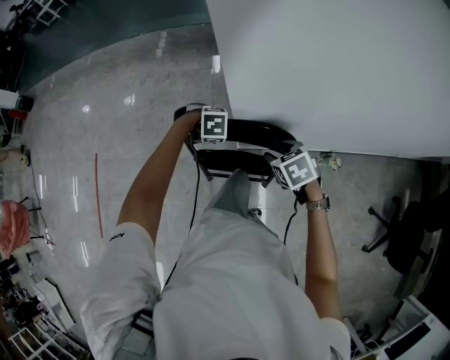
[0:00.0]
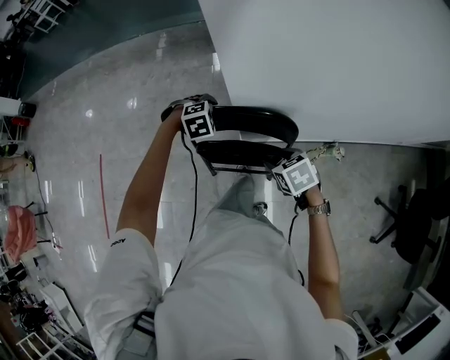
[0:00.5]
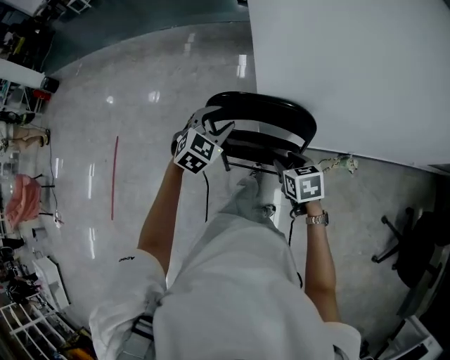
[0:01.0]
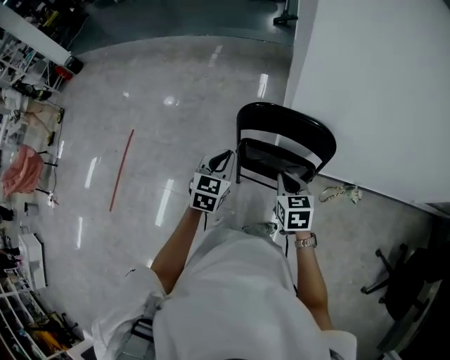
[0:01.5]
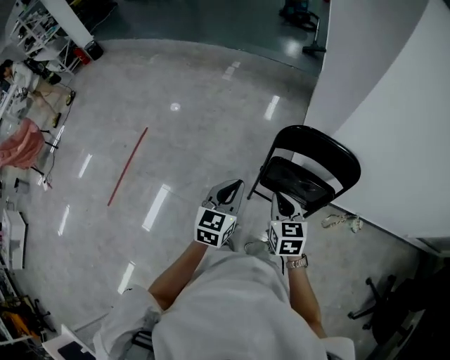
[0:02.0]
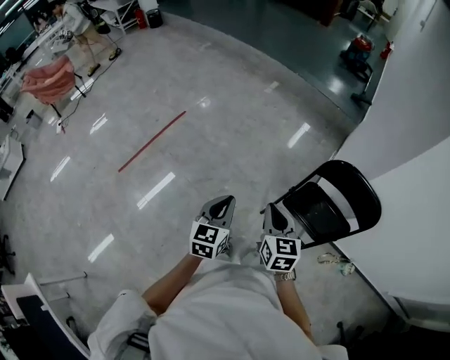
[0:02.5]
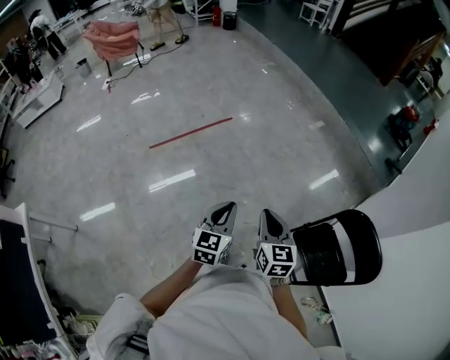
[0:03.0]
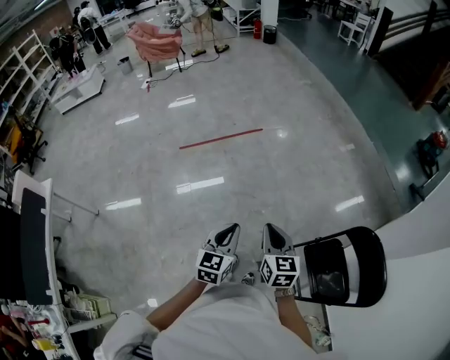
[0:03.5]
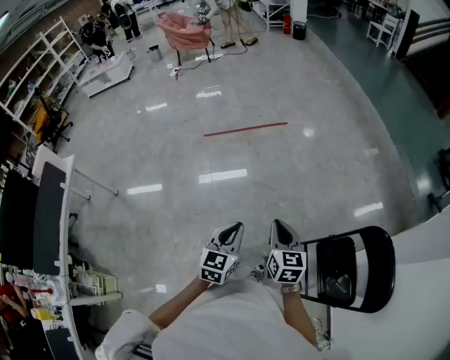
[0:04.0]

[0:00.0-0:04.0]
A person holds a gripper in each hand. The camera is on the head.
0.0 to 2.0 s: The left gripper shifts by about 40 cm, and points its fingers about 60 degrees further upward. Meanwhile the right gripper changes place by roughly 35 cm, swivels some 30 degrees, and closes up.
2.0 to 4.0 s: The left gripper shifts by roughly 30 cm, and changes its angle by roughly 60 degrees. The right gripper shifts by roughly 30 cm, and rotates about 50 degrees.

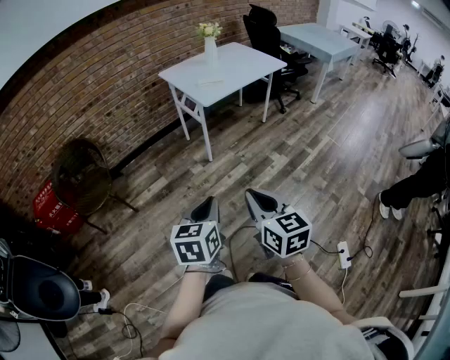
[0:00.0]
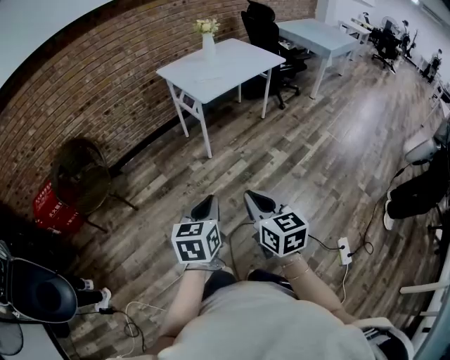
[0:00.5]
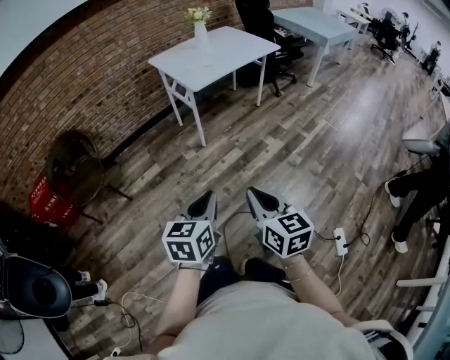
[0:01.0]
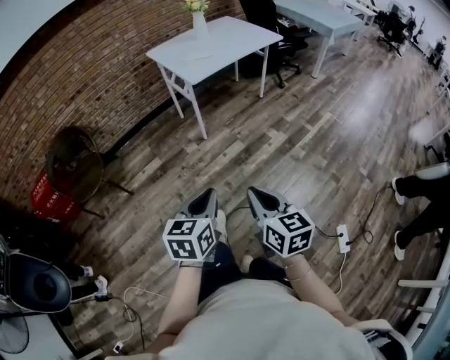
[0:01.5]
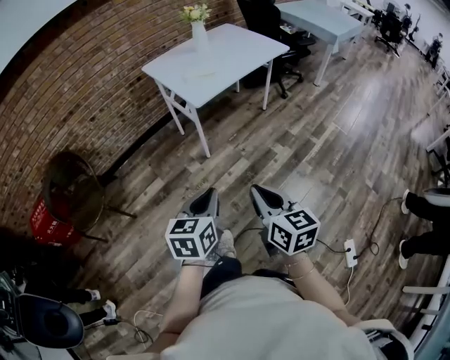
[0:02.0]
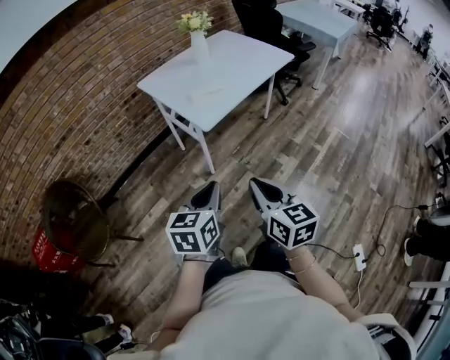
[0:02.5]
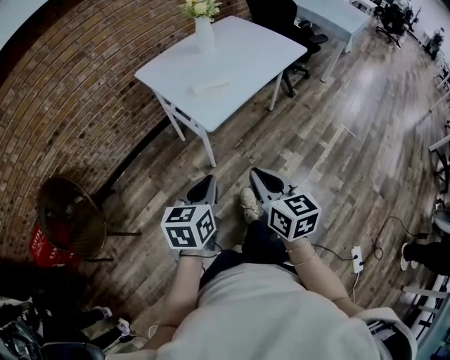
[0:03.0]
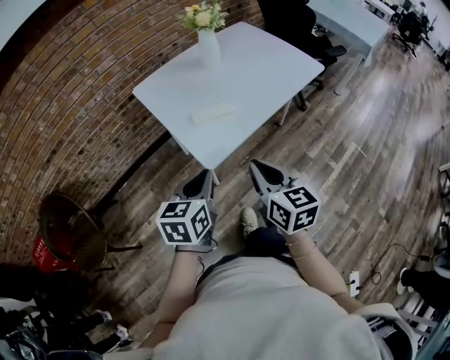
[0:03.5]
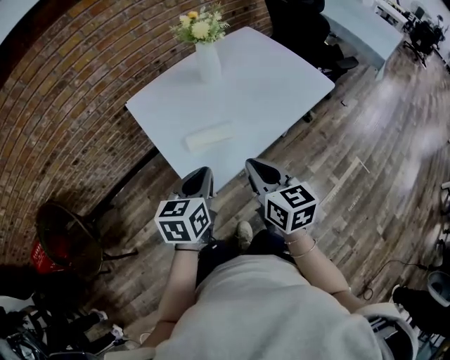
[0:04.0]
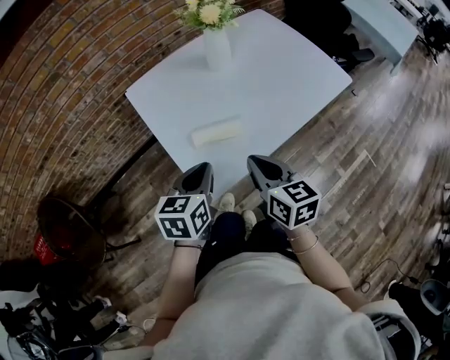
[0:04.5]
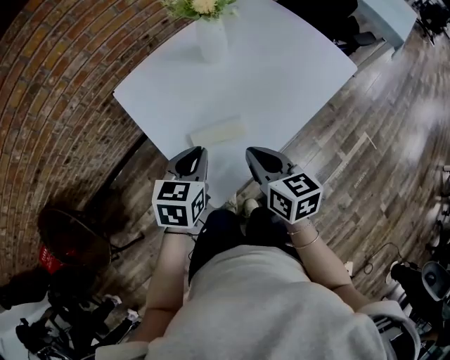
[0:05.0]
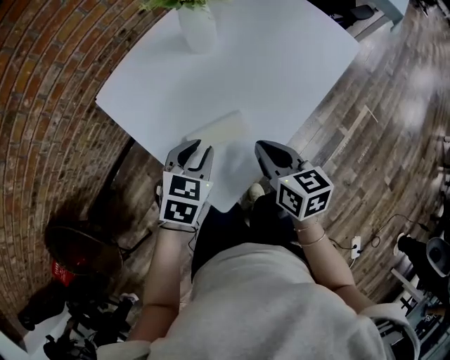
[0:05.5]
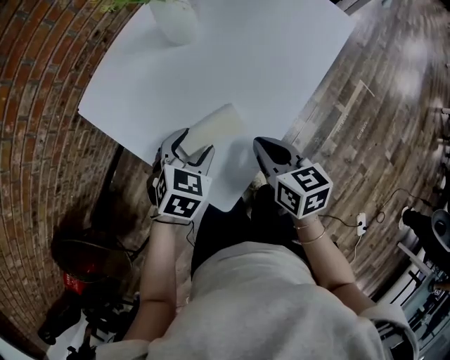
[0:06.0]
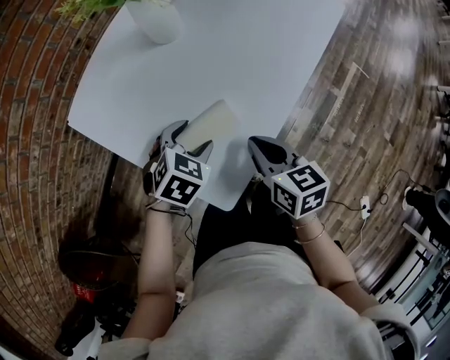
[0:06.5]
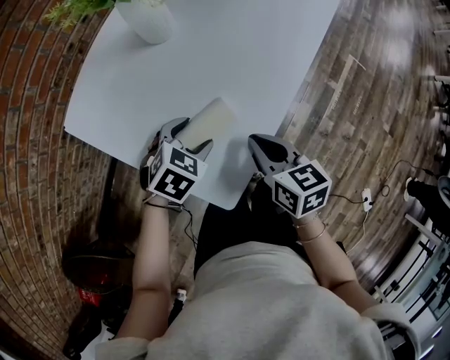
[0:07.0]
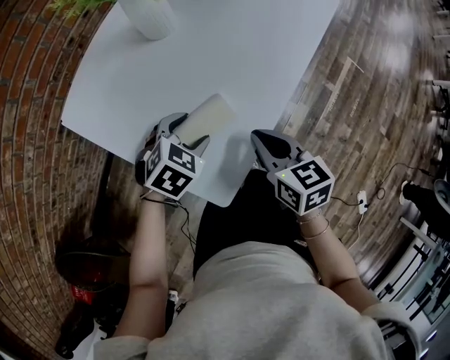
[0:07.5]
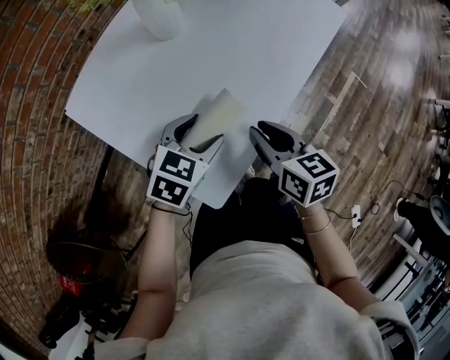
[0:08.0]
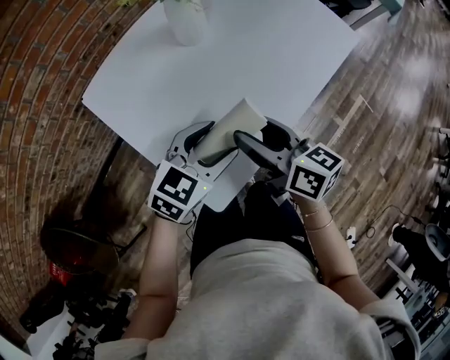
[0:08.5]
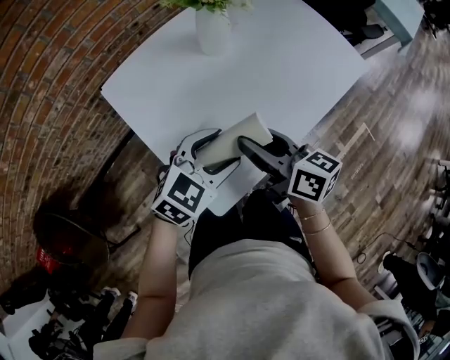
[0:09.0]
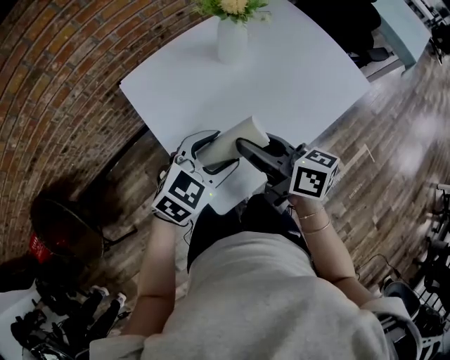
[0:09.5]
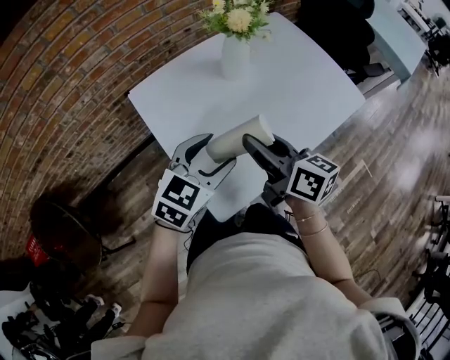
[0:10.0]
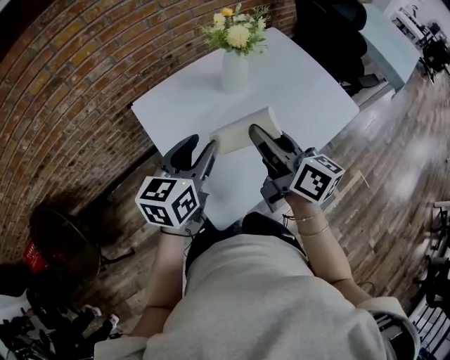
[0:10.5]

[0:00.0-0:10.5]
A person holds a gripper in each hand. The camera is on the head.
0.0 to 2.0 s: The two grippers go about 20 cm forward.
2.0 to 4.0 s: The two grippers travel together, forward, approximately 60 cm.
4.0 to 6.5 s: The right gripper heads downward and forward, covering some 20 cm, and rotates approximately 30 degrees. The left gripper is displaced forward and downward by approximately 25 cm, tips its fingers downward by roughly 40 degrees, and opens its fingers.
6.5 to 8.5 s: The right gripper moves upward, approximately 10 cm, changes its angle by some 30 degrees, and opens. Meanwhile the left gripper moves upward and to the right, some 10 cm, and rotates approximately 30 degrees.
8.5 to 10.5 s: The left gripper travels upward and to the left by some 15 cm, and turns by about 40 degrees; the right gripper moves upward, approximately 15 cm, and closes its fingers.

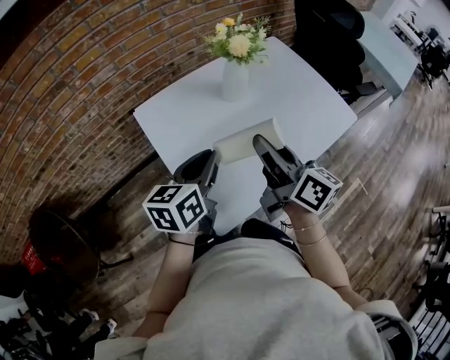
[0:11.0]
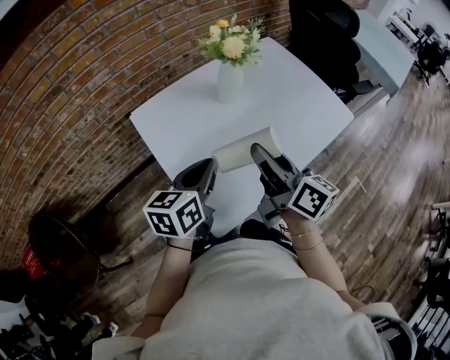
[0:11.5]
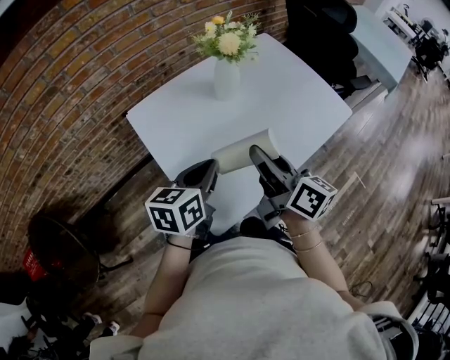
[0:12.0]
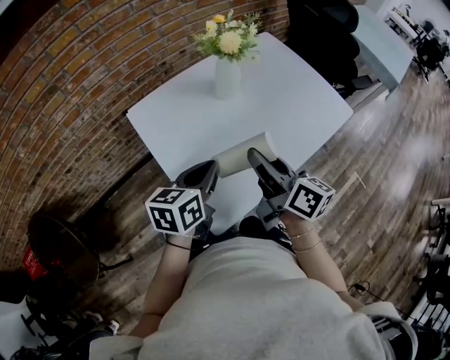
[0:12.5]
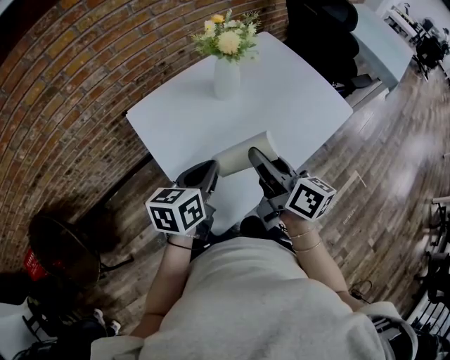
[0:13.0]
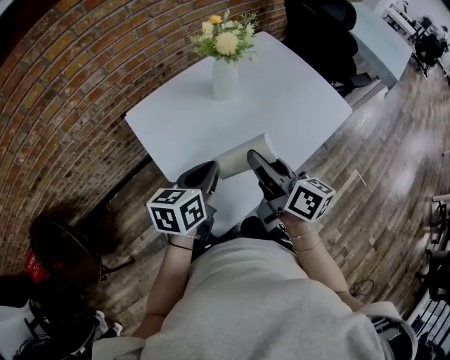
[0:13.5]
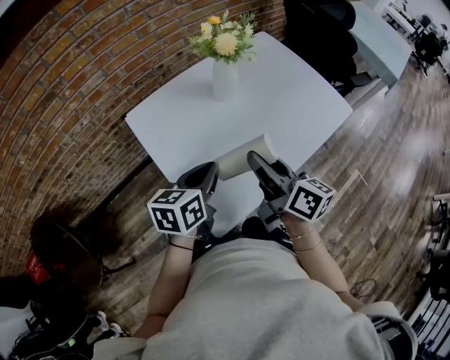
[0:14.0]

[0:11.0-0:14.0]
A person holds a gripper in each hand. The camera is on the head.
11.0 to 12.5 s: The grippers make only small movements.
12.5 to 14.0 s: Both grippers stay put.

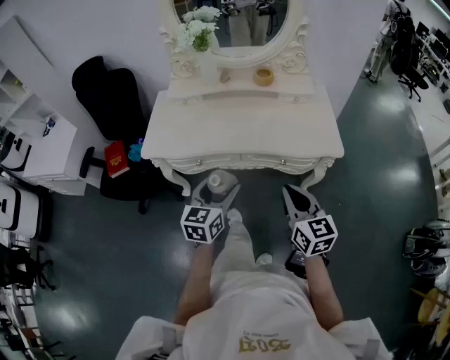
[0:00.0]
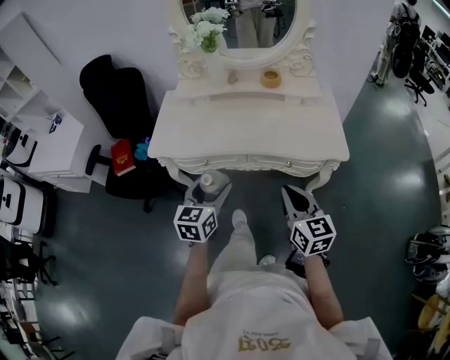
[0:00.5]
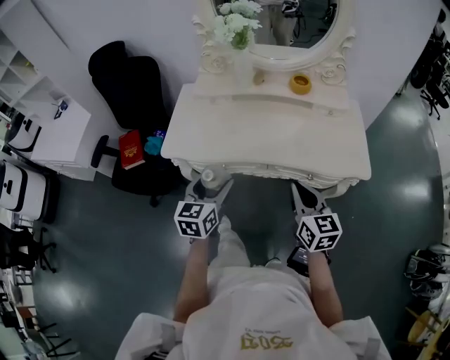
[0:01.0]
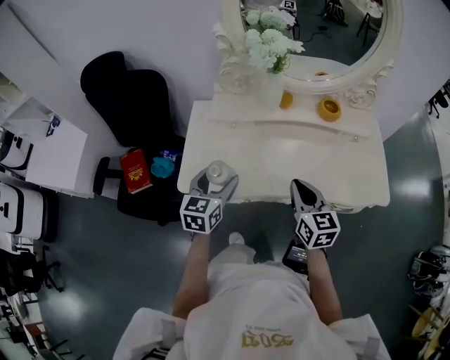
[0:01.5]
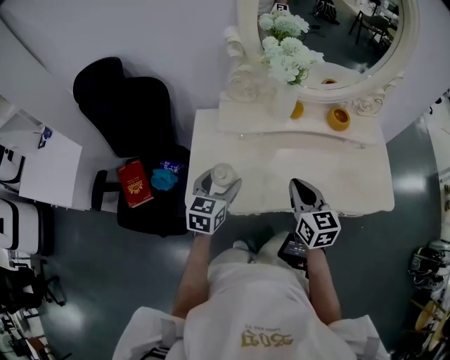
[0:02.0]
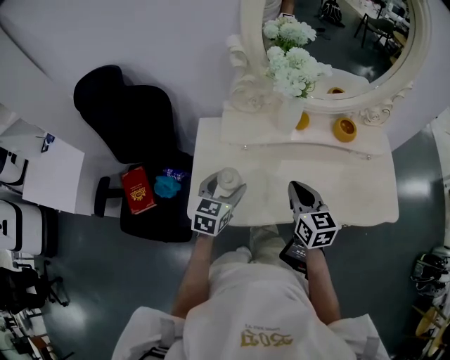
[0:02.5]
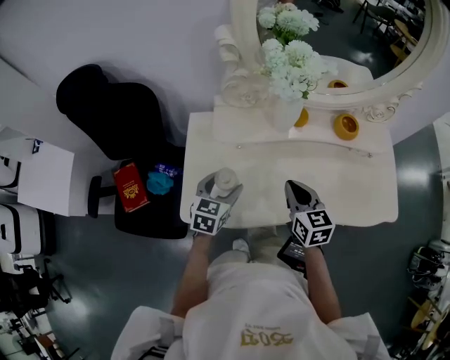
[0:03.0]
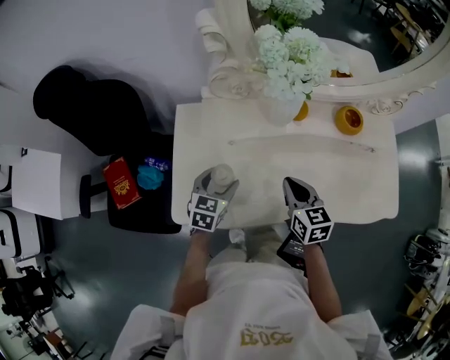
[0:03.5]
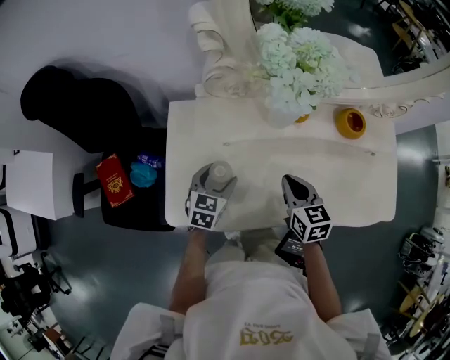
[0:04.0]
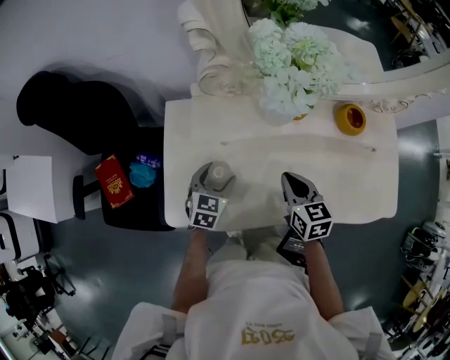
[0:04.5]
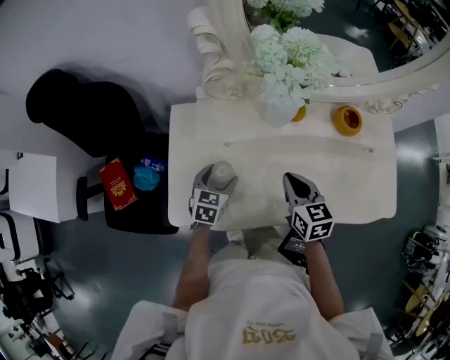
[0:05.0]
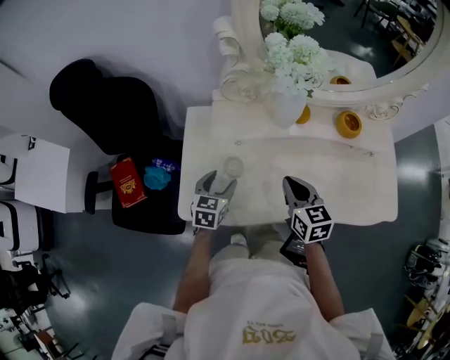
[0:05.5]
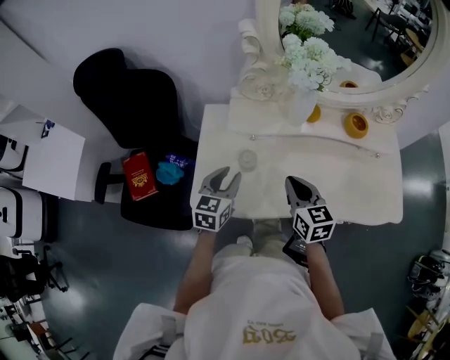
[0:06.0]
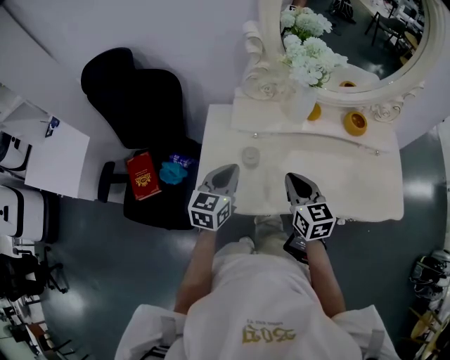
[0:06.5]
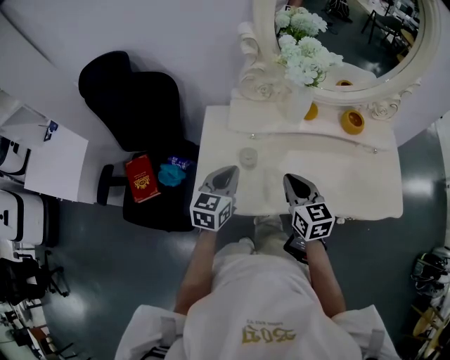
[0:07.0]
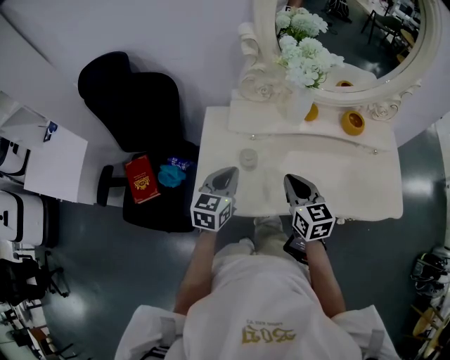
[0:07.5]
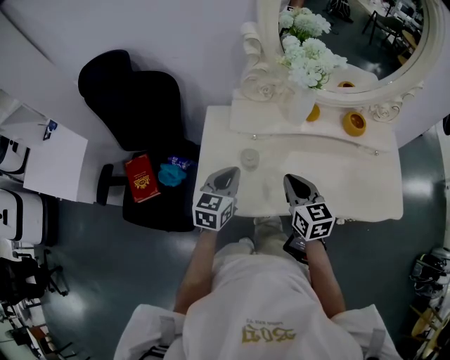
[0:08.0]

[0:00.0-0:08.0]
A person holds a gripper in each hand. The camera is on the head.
0.0 to 2.0 s: The grippers both shift forward and to the left by about 40 cm.
2.0 to 4.0 s: The left gripper moves downward and forward, about 15 cm, while the right gripper shifts about 15 cm forward and downward.
4.0 to 6.0 s: The right gripper goes about 10 cm upward, backward and to the left. Meanwhile the left gripper travels upward and backward by roughly 10 cm, and closes its fingers.
6.0 to 8.0 s: The left gripper closes up.

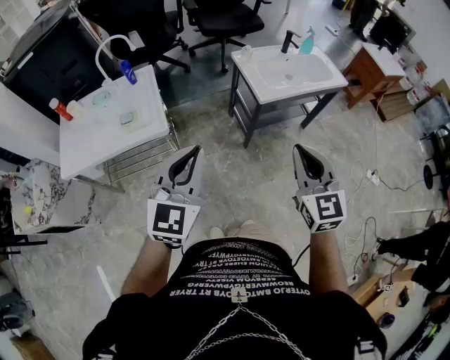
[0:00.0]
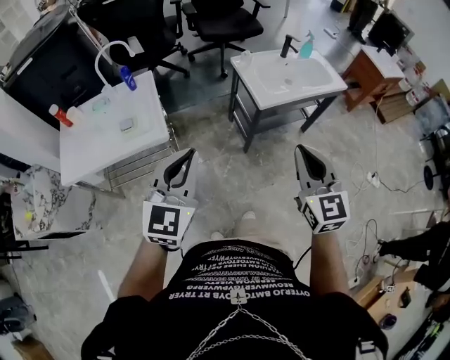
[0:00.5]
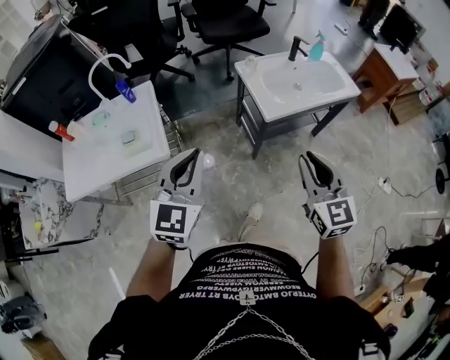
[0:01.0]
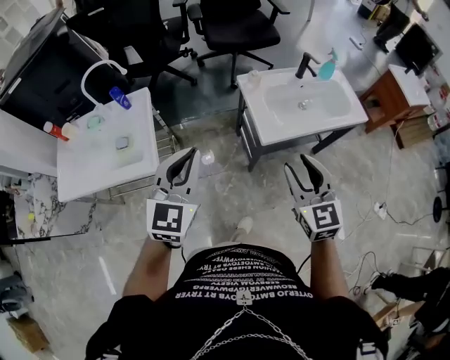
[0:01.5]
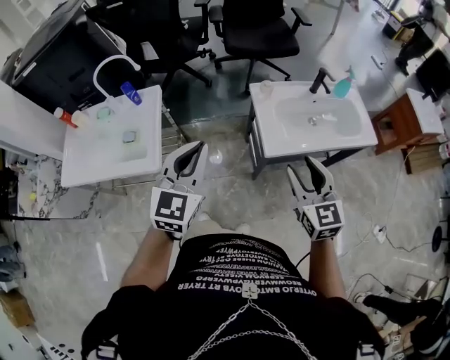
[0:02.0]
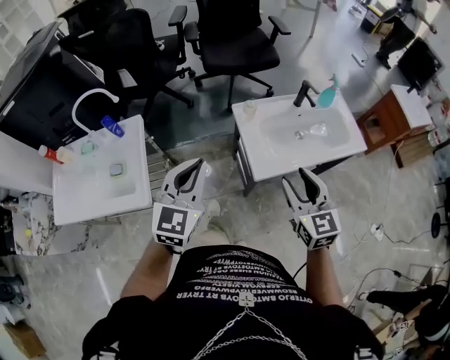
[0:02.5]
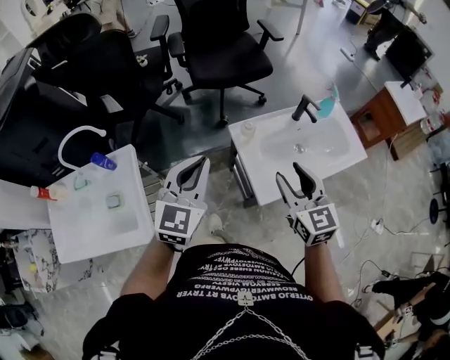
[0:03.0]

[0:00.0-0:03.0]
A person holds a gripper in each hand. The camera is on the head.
0.0 to 1.5 s: The grippers both shift forward by about 25 cm. The right gripper opens up.
1.5 to 3.0 s: The grippers both shift forward by roughly 25 cm.
